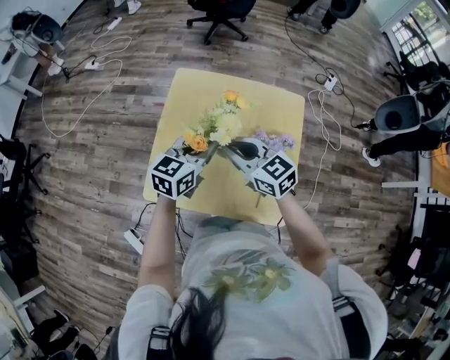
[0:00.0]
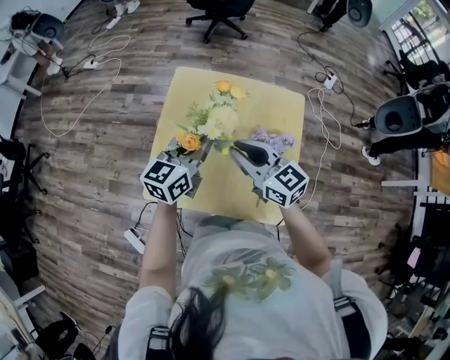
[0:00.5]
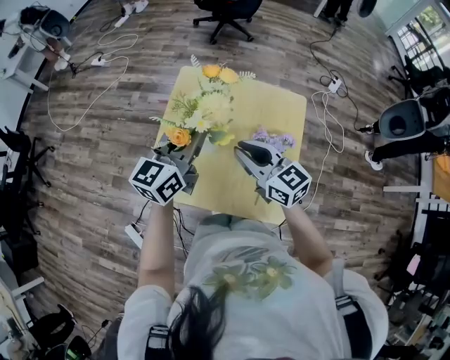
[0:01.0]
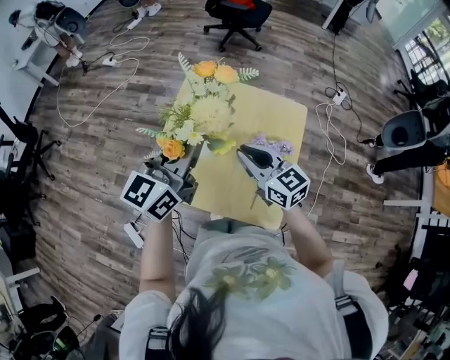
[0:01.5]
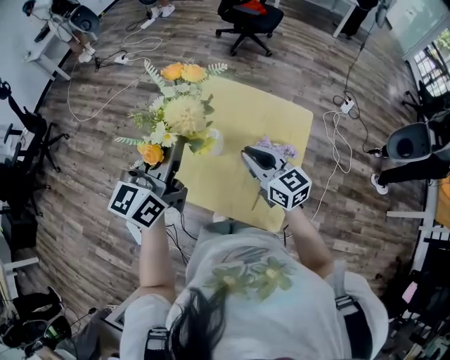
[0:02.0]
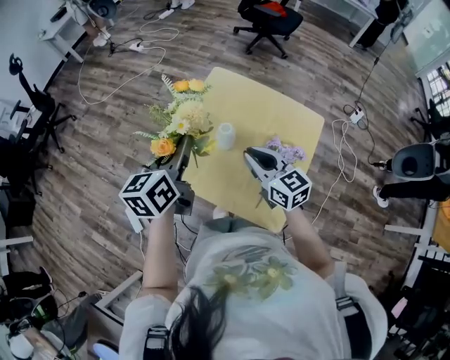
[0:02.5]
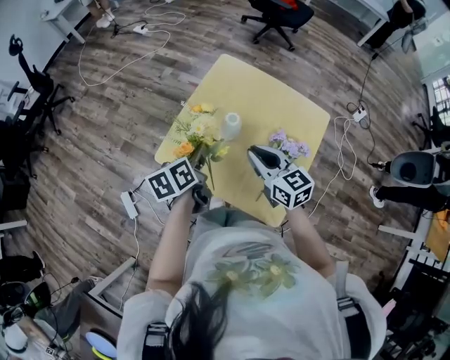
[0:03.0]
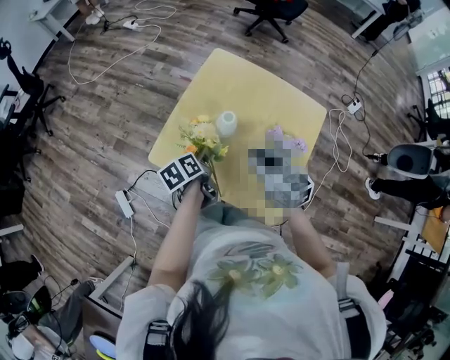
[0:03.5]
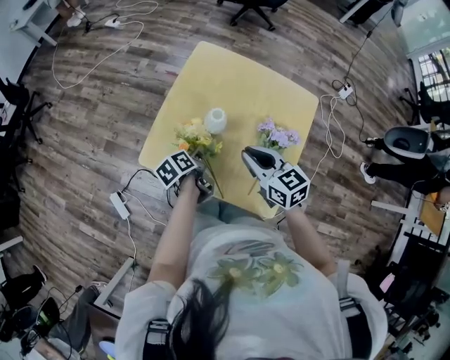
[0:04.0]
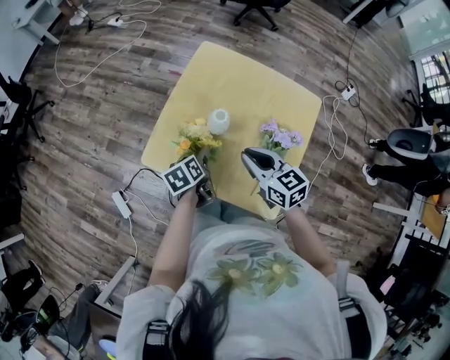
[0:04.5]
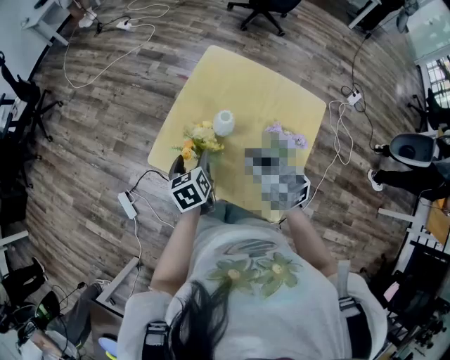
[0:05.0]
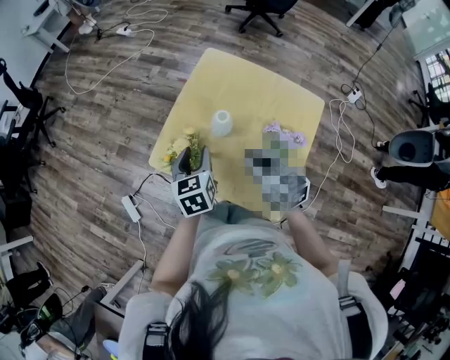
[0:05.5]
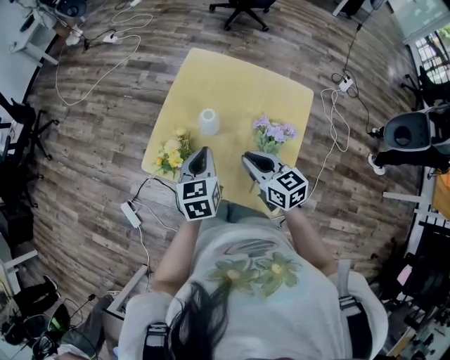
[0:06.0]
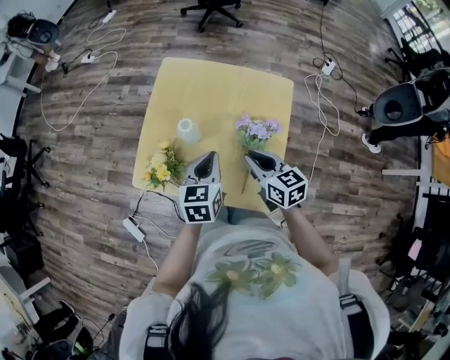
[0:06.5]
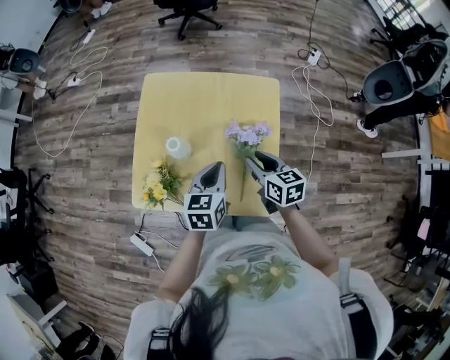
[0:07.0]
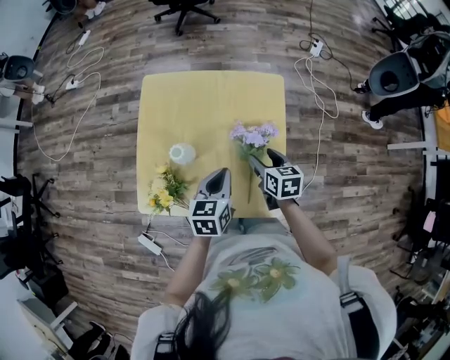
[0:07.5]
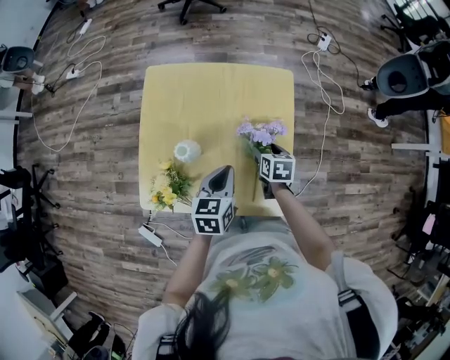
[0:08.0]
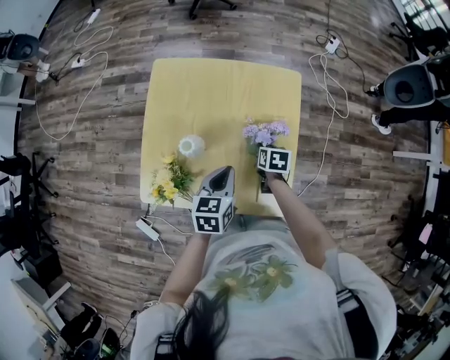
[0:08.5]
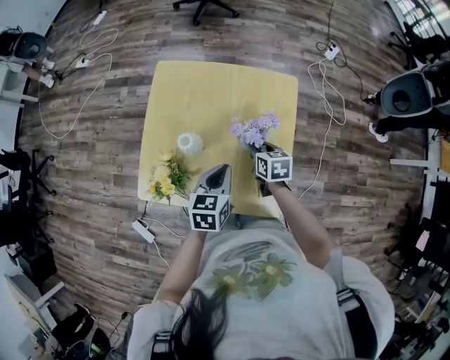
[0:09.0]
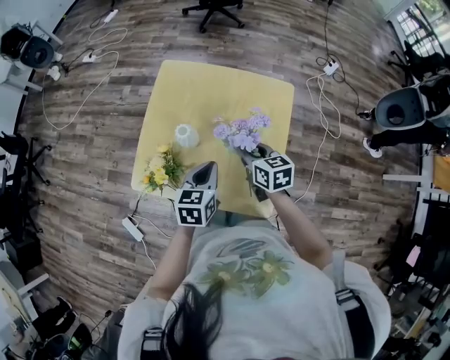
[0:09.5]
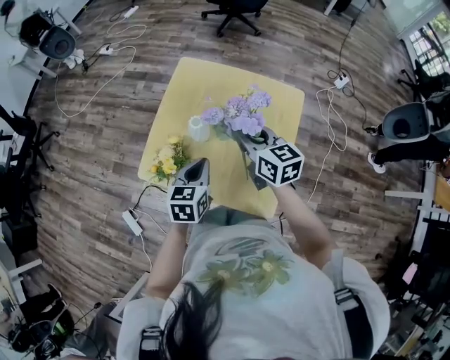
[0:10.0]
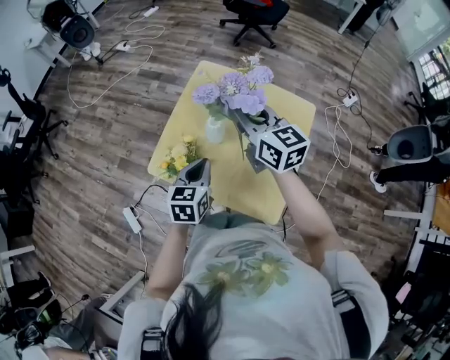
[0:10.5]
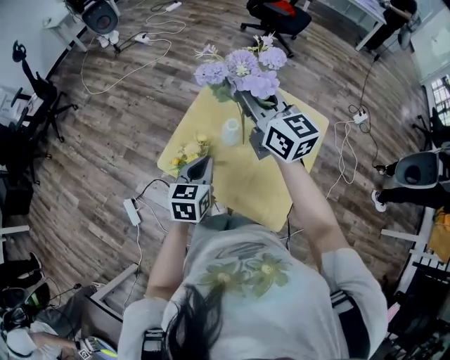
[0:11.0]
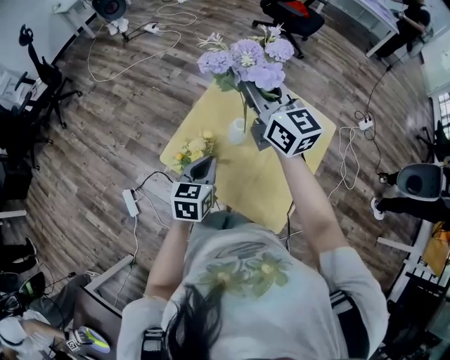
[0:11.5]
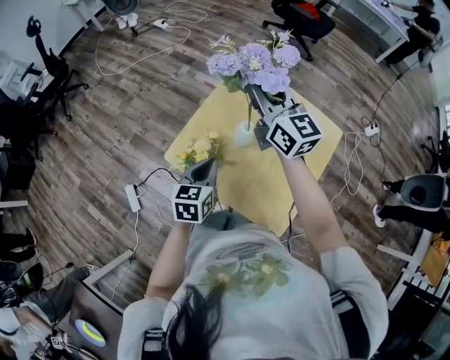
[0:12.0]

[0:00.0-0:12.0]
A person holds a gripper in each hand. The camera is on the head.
0:00.0 to 0:02.0: The left gripper heads upward and backward, covering roughly 25 cm, and turns by roughly 30 degrees. Meanwhile the right gripper travels to the right and backward by roughly 10 cm.
0:02.0 to 0:04.0: The right gripper is displaced downward by roughly 10 cm; the left gripper shifts approximately 40 cm downward, and tips its fingers downward by approximately 50 degrees.
0:04.0 to 0:06.0: The right gripper shifts by some 5 cm; the left gripper heads upward, covering approximately 15 cm, rolls clockwise, seen from behind, by approximately 50 degrees, and opens, then closes again.
0:06.0 to 0:08.0: The left gripper ends up some 20 cm from where it was, and changes its angle by approximately 30 degrees. Meanwhile the right gripper changes place by some 25 cm, tilts its fingers approximately 30 degrees downward, and opens its fingers.
0:08.0 to 0:10.0: The left gripper shifts approximately 15 cm to the left, backward and upward. Meanwhile the right gripper heads upward and to the left, covering approximately 30 cm, tilts its fingers approximately 40 degrees upward, and closes its fingers.
0:10.0 to 0:12.0: The left gripper travels to the left by some 10 cm; the right gripper goes approximately 25 cm upward, to the left and forward, and changes its angle by about 30 degrees.

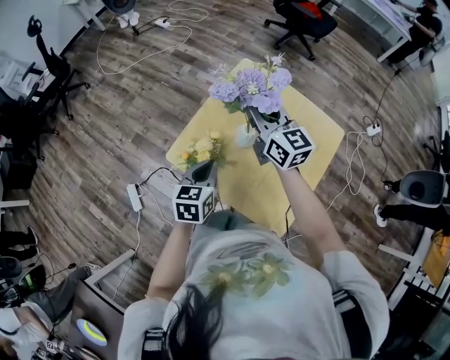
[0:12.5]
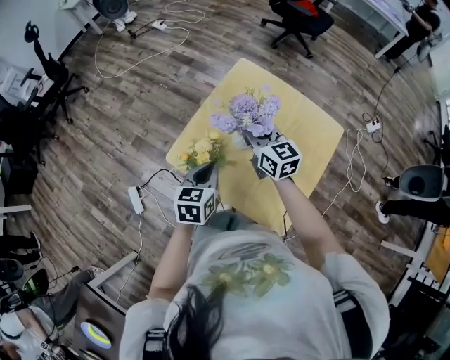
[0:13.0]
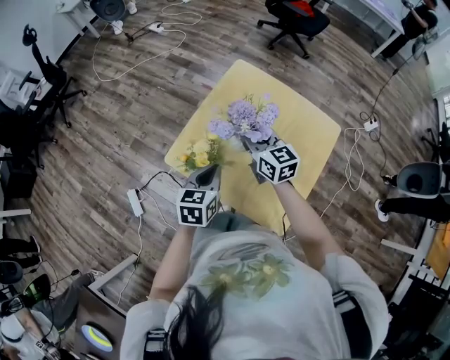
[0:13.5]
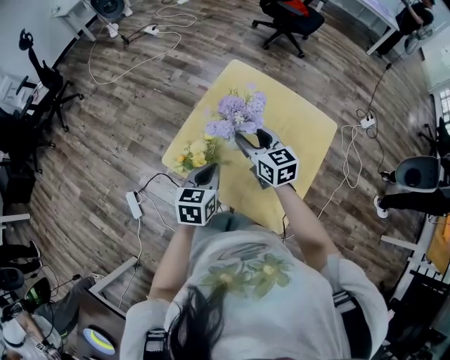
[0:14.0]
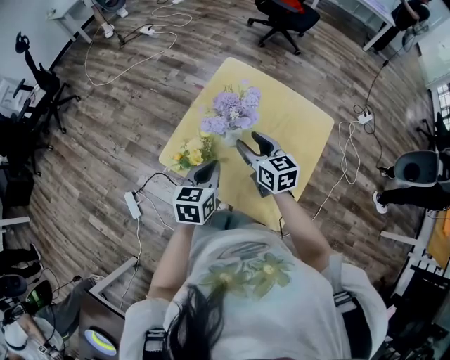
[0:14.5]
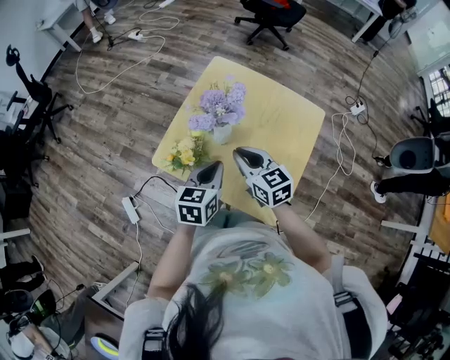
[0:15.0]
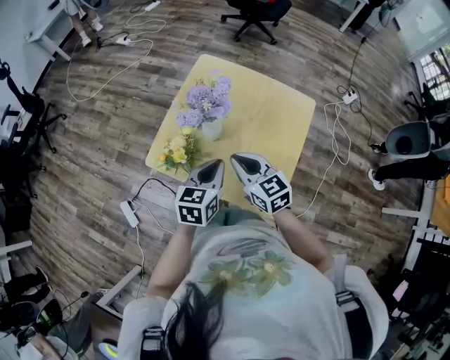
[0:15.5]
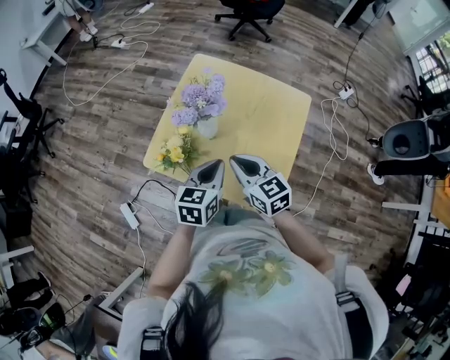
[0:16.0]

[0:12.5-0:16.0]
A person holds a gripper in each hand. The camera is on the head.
0:12.5 to 0:14.5: The right gripper shifts approximately 15 cm downward and backward, swivels roughly 20 degrees, and opens up.
0:14.5 to 0:16.0: The right gripper shifts about 10 cm backward, and closes up. The left gripper travels to the right by about 10 cm.

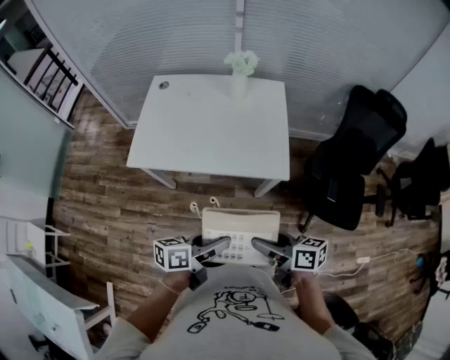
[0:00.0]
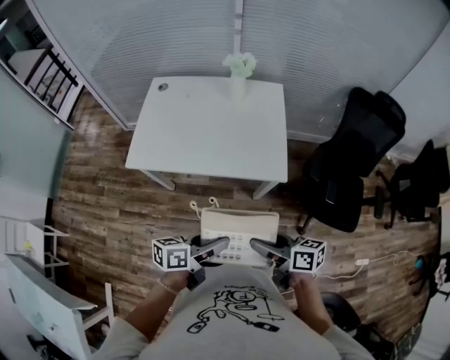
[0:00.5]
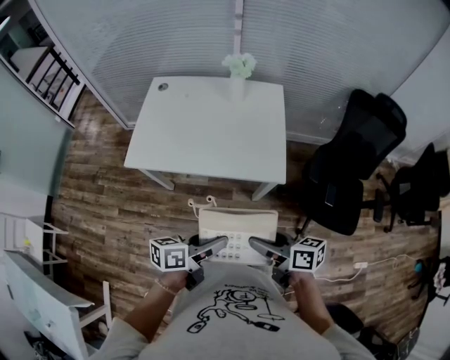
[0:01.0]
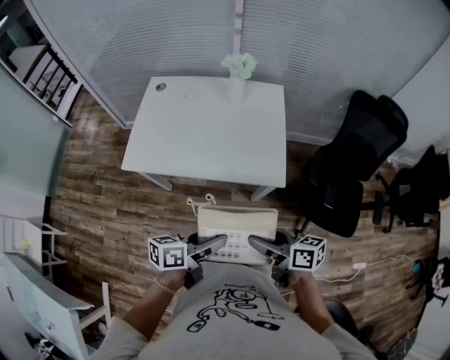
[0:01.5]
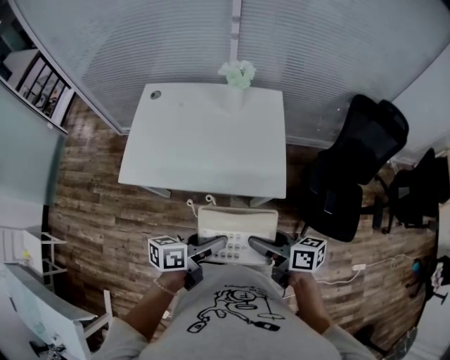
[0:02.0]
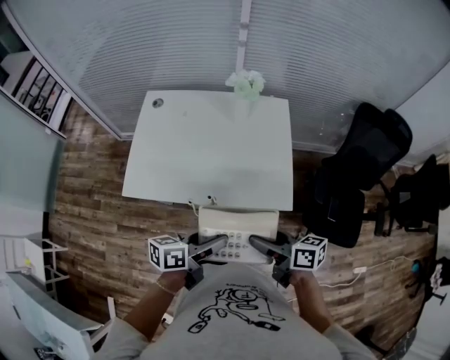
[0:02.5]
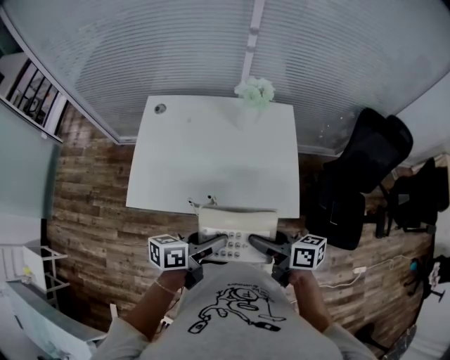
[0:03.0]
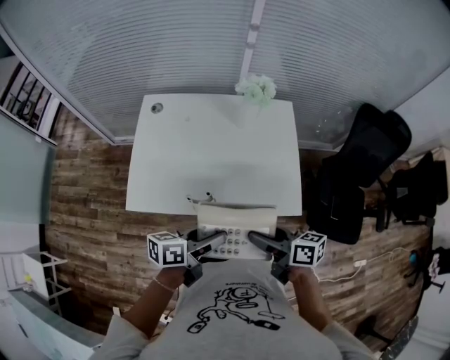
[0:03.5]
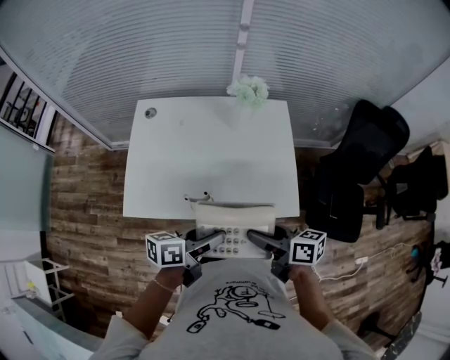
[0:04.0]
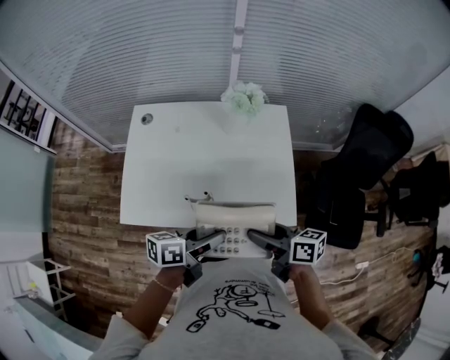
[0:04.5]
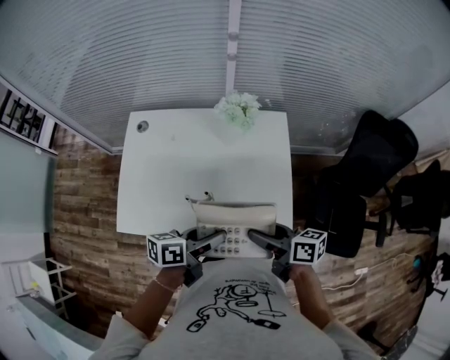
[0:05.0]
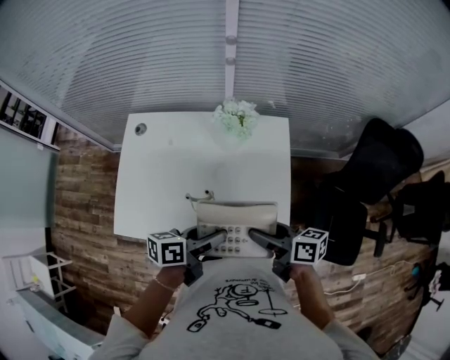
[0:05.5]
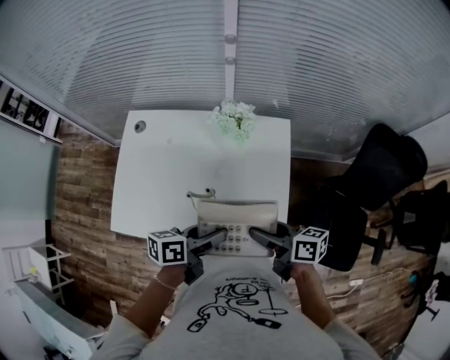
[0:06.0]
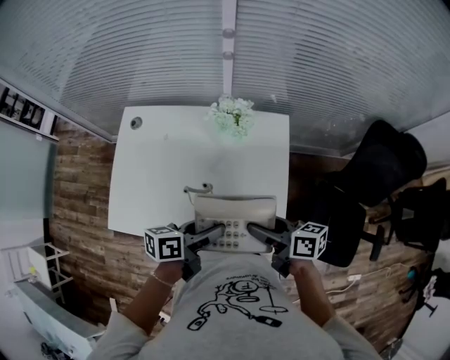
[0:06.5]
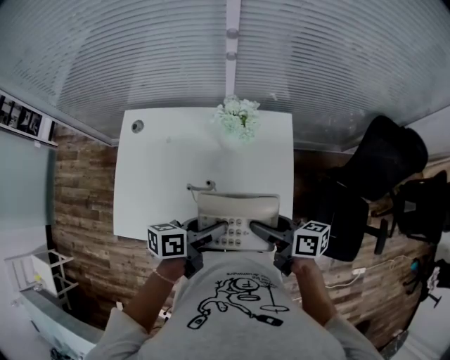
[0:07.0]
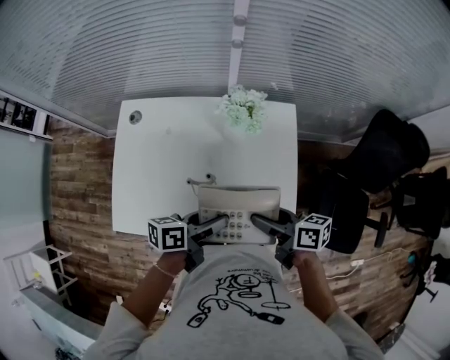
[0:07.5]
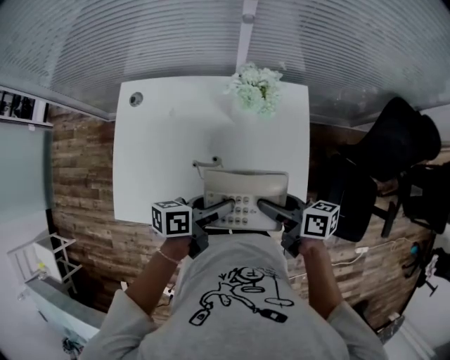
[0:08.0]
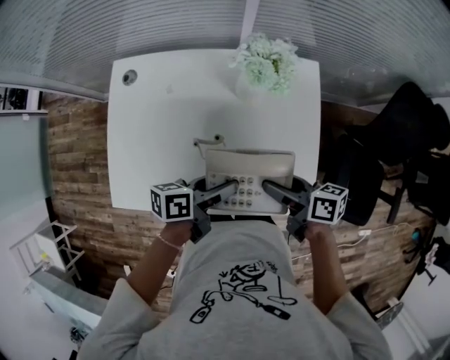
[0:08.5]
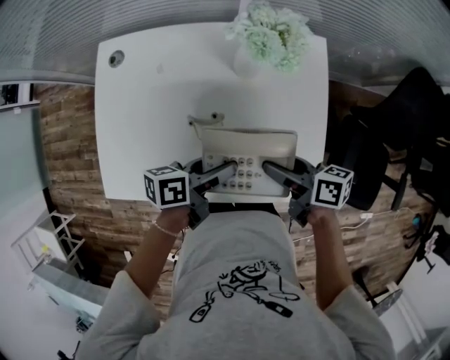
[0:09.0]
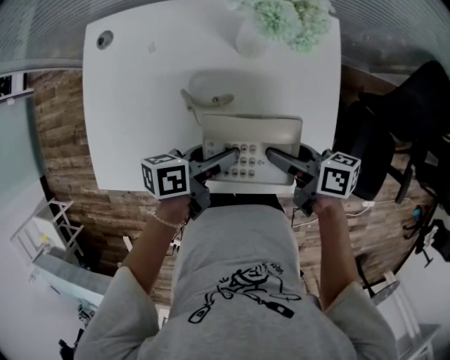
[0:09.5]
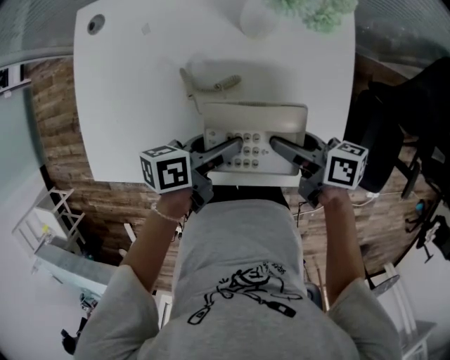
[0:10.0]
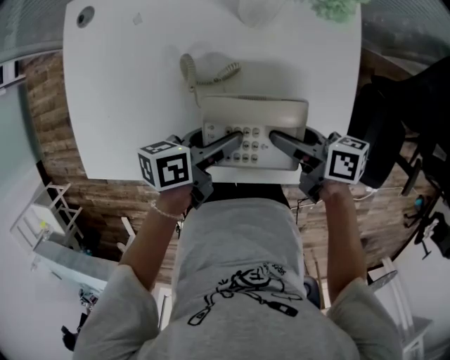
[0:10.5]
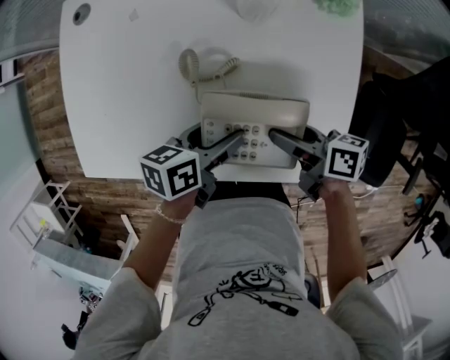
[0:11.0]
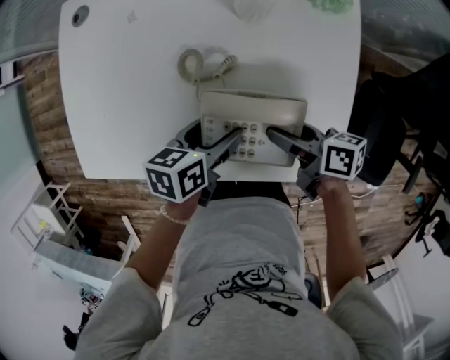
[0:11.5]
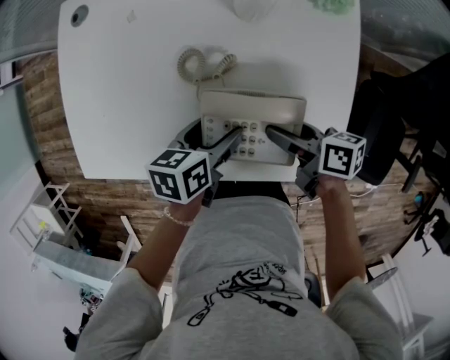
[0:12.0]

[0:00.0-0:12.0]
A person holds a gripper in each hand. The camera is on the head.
0:00.0 to 0:02.0: Both grippers travel together forward, roughly 10 cm.
0:02.0 to 0:04.0: The grippers both shift forward and to the left by roughly 15 cm.
0:04.0 to 0:06.0: Both grippers travel together forward and to the right, about 15 cm.
0:06.0 to 0:08.0: The right gripper ends up some 5 cm from where it was. Meanwhile the left gripper shifts by approximately 5 cm.
0:08.0 to 0:10.0: The grippers both shift downward by roughly 15 cm.
0:10.0 to 0:12.0: The left gripper swivels some 30 degrees.
